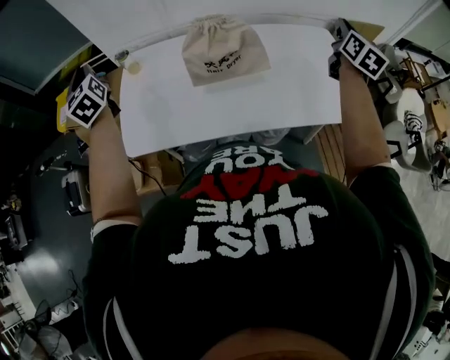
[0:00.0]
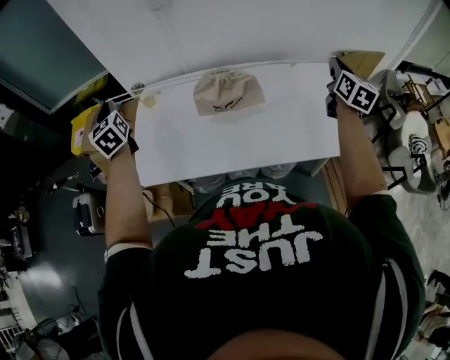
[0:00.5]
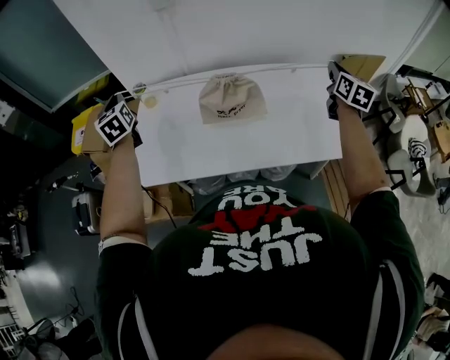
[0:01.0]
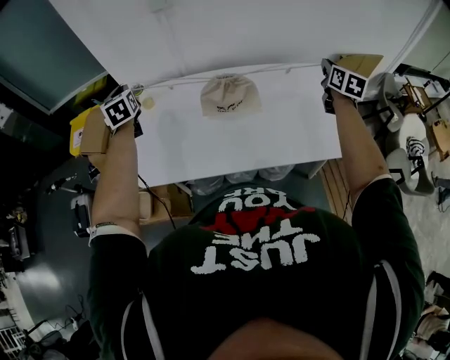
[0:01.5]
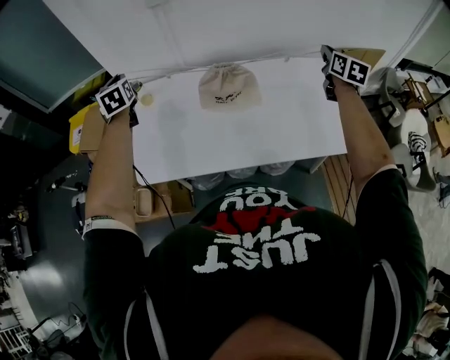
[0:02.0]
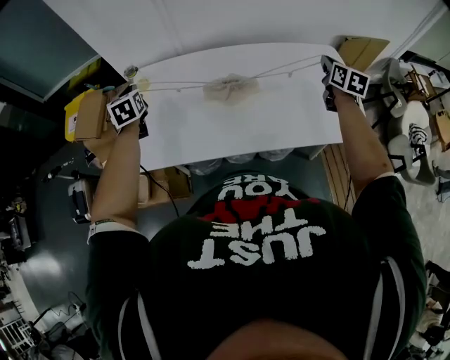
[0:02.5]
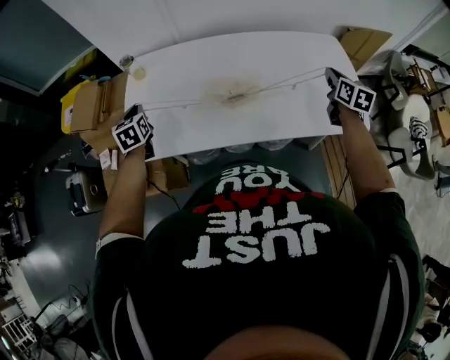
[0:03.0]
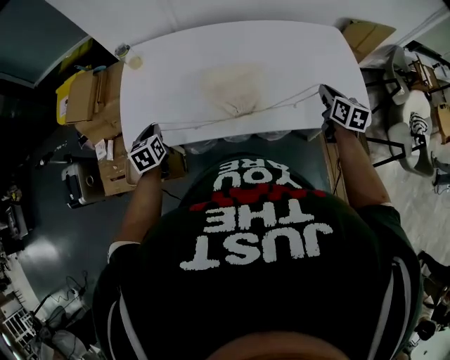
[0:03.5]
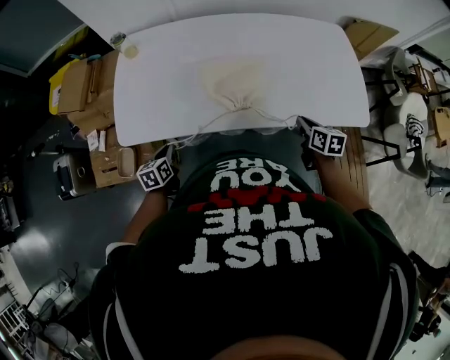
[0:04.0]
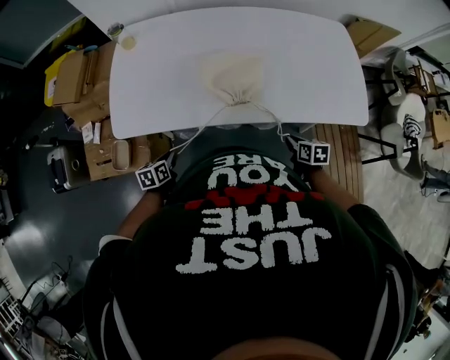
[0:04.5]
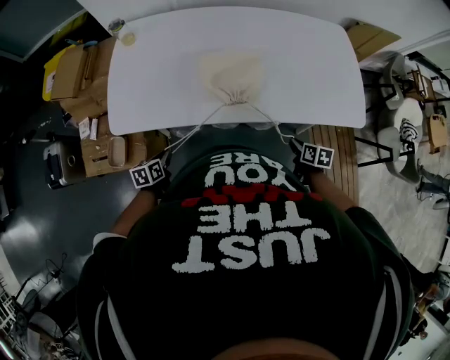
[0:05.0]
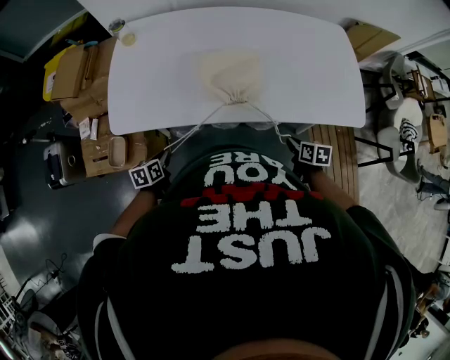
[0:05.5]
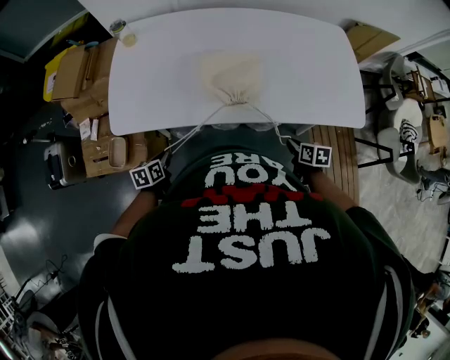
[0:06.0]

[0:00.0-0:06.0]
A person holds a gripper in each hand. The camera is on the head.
0.0 to 2.0 s: The left gripper shifts approximately 10 cm forward and to the right, and rotates some 20 degrees. The right gripper is displaced forward by roughly 5 cm.
2.0 to 4.0 s: Both grippers travel together downward and backward, some 40 cm. The right gripper rotates some 30 degrees; the left gripper changes its angle by roughly 40 degrees.
4.0 to 6.0 s: The left gripper travels backward by roughly 5 cm. Meanwhile the right gripper heads downward and backward, covering some 10 cm.

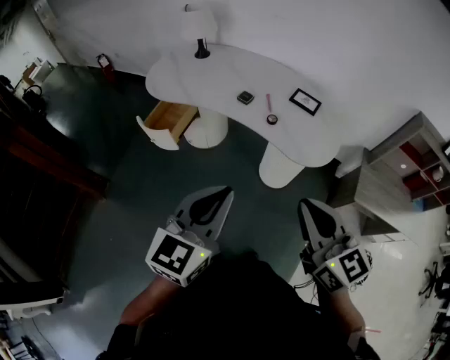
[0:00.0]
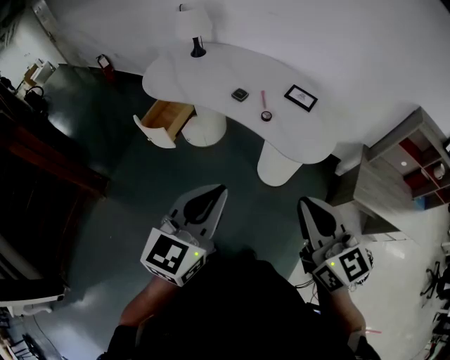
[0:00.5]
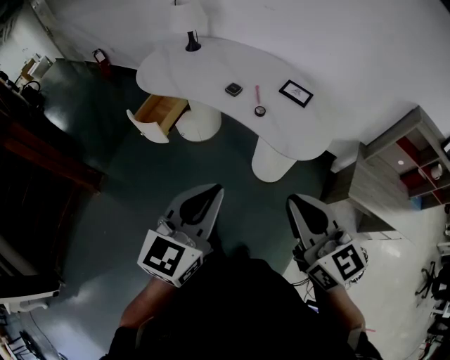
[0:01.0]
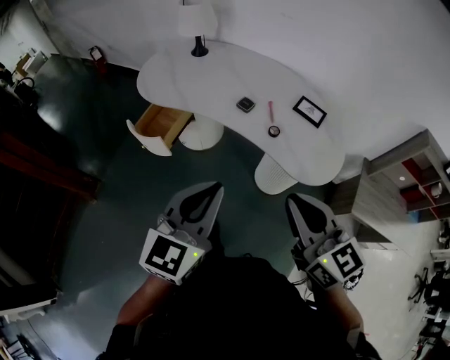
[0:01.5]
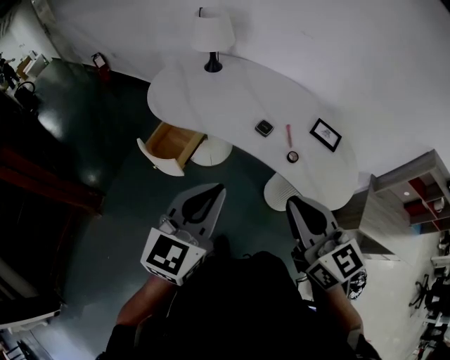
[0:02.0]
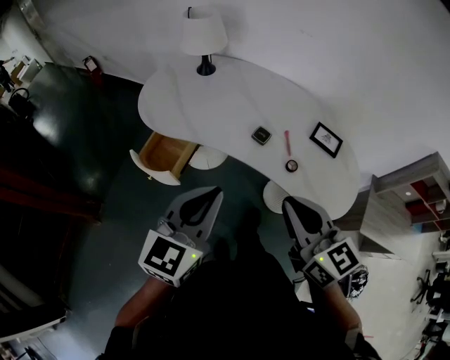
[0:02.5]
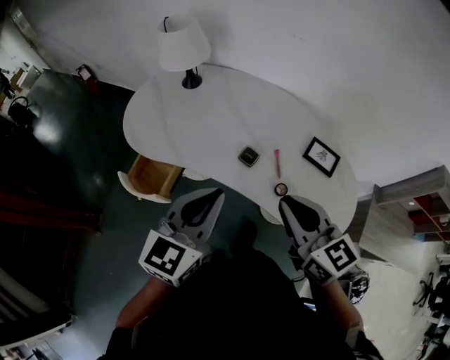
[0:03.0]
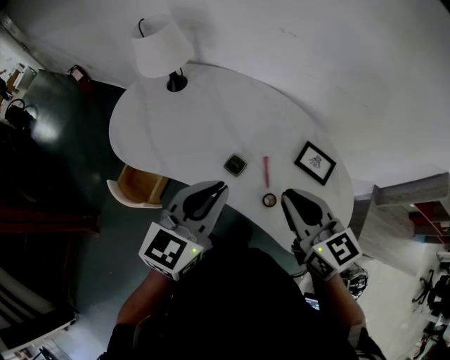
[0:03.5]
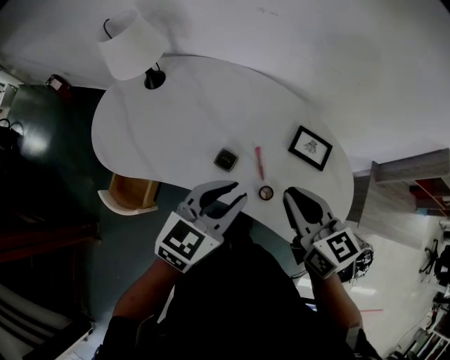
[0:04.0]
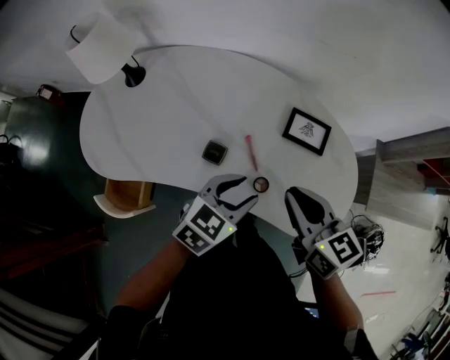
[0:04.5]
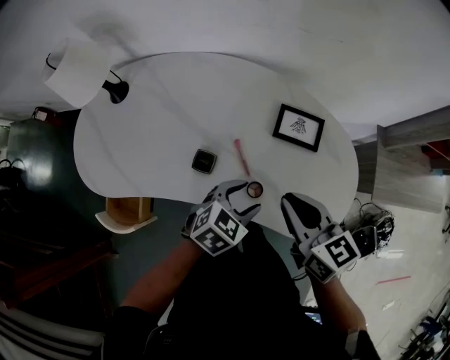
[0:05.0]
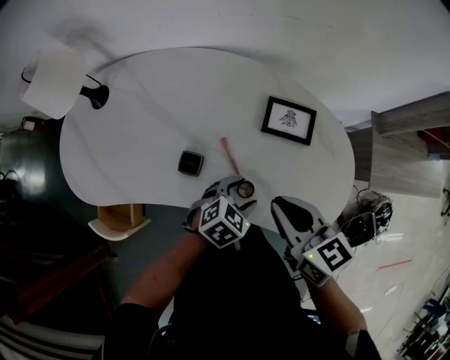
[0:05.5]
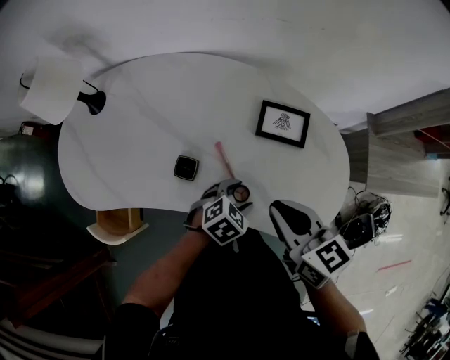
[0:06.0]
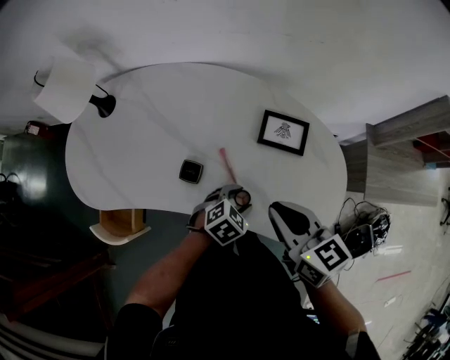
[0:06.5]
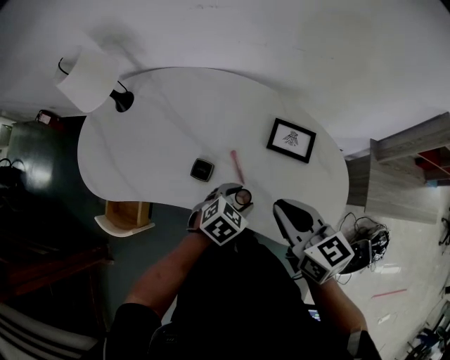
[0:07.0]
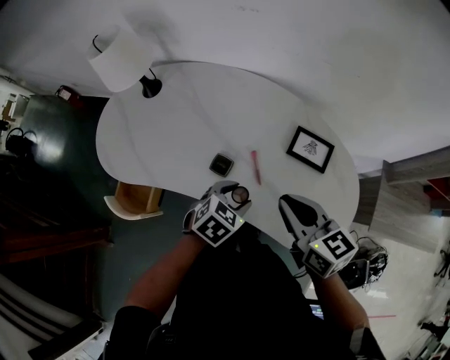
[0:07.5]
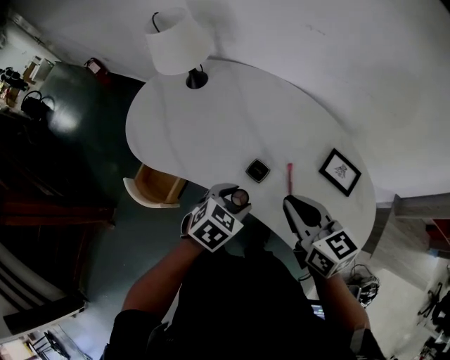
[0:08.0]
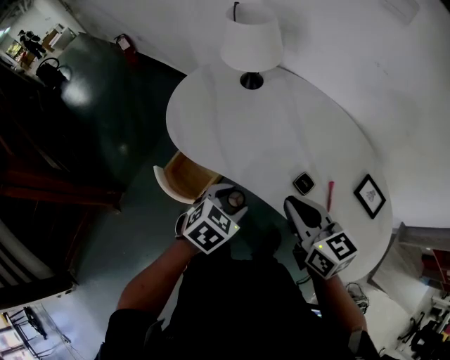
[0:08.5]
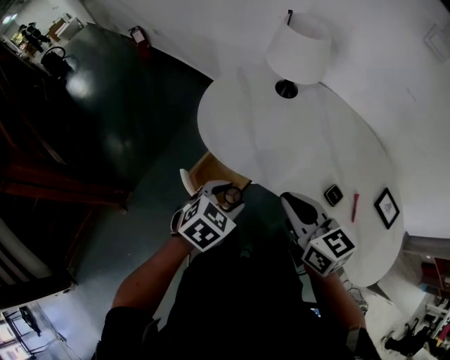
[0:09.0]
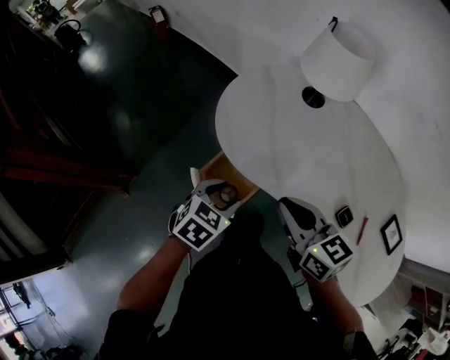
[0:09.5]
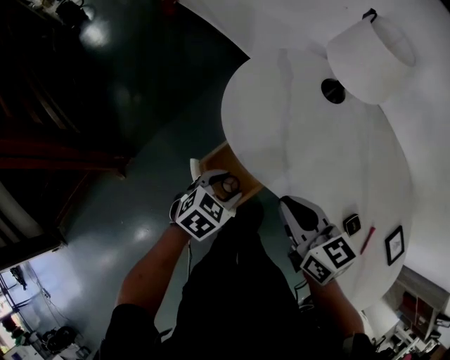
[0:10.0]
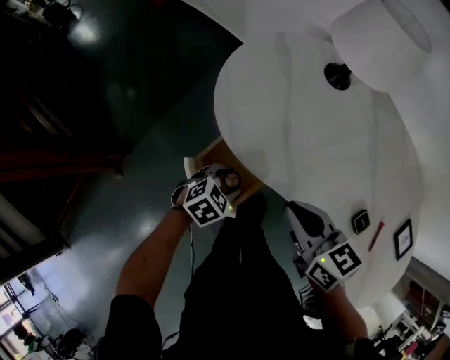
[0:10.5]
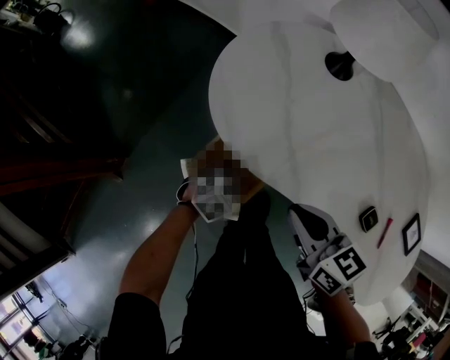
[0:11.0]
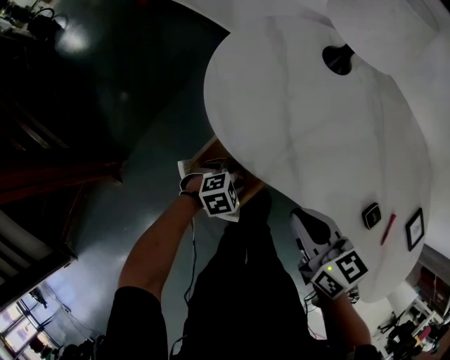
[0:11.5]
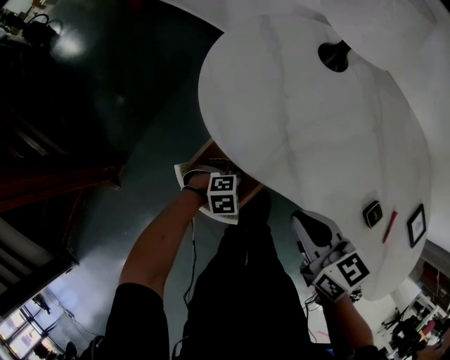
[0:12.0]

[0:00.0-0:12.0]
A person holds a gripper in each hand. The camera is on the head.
0.0 to 2.0 s: The grippers both shift forward and to the left by roughly 25 cm.
2.0 to 4.0 s: Both grippers travel together forward and to the right, some 30 cm. The left gripper turns by some 30 degrees.
4.0 to 6.0 s: The left gripper moves downward and to the right, approximately 30 cm, angles its fingers downward, by roughly 40 degrees, and opens its fingers. Meanwhile the right gripper heads downward and to the right, covering some 10 cm.
6.0 to 8.0 s: The right gripper shifts by approximately 15 cm, and rotates some 20 degrees, while the left gripper changes place by approximately 20 cm, and turns by about 30 degrees.
8.0 to 10.0 s: Both grippers move to the left, some 40 cm. The left gripper turns by some 20 degrees. The right gripper rotates some 20 degrees.
10.0 to 12.0 s: The left gripper goes approximately 20 cm downward, and rolls clockwise, seen from behind, by roughly 40 degrees. The right gripper goes approximately 5 cm downward.

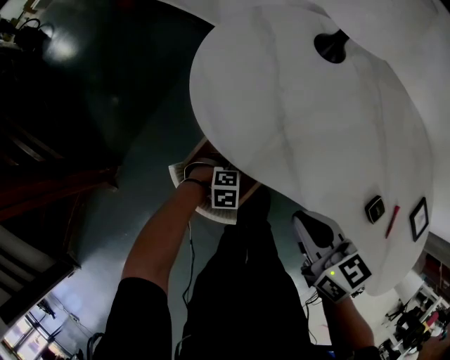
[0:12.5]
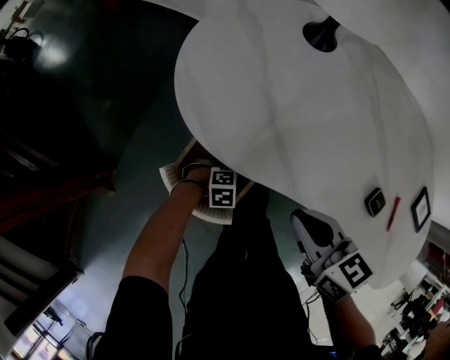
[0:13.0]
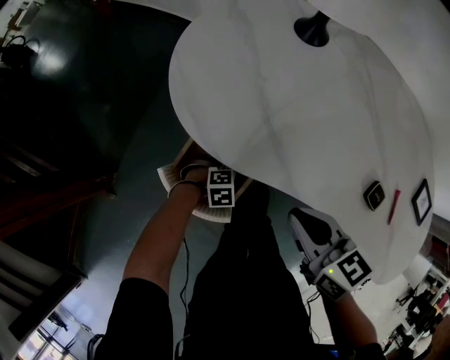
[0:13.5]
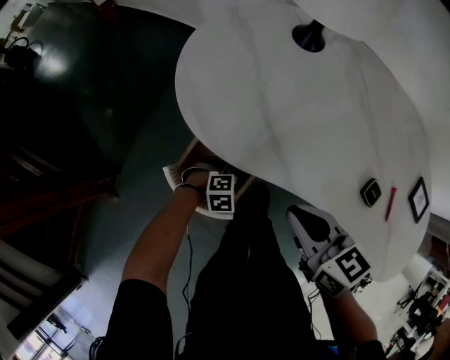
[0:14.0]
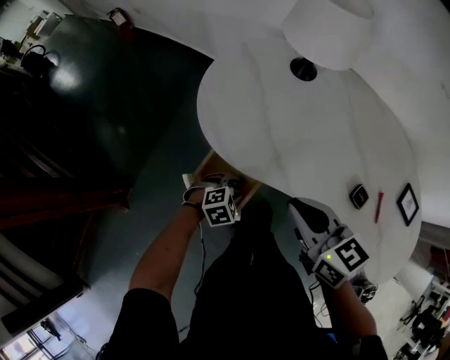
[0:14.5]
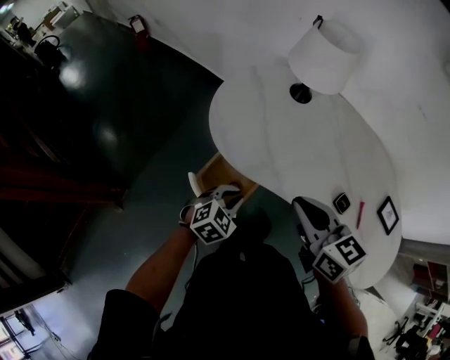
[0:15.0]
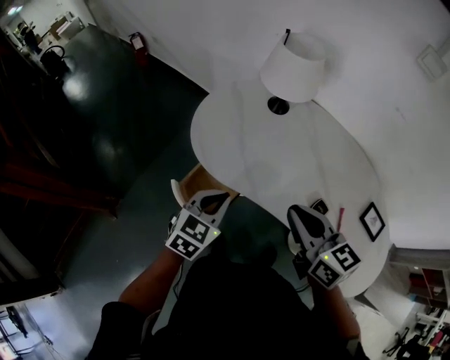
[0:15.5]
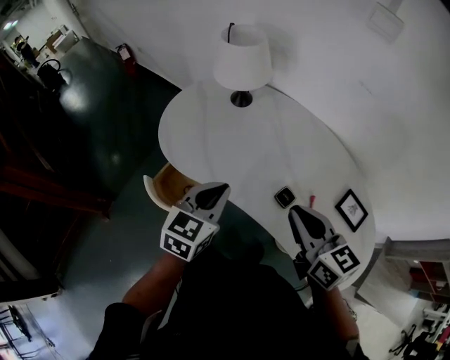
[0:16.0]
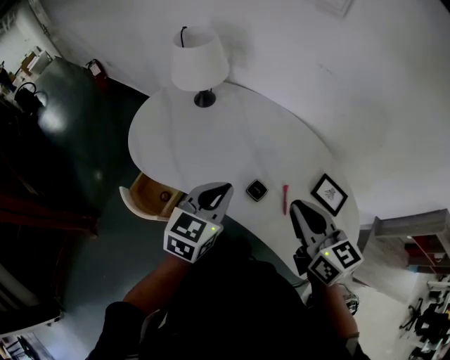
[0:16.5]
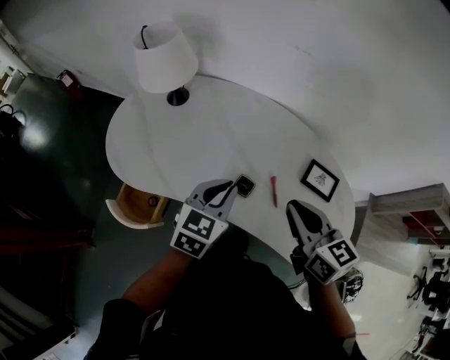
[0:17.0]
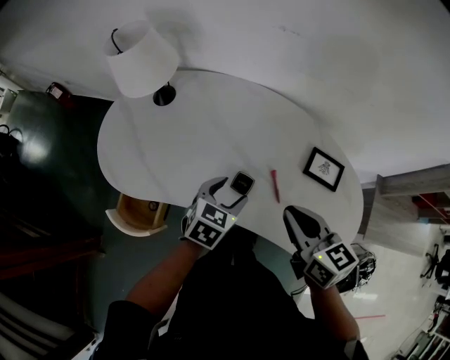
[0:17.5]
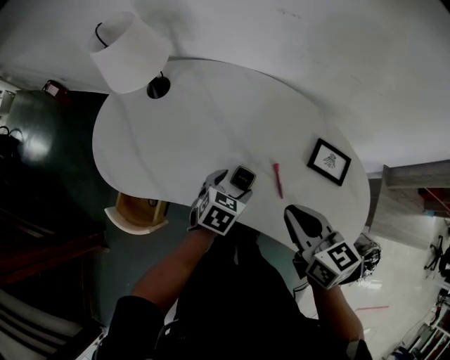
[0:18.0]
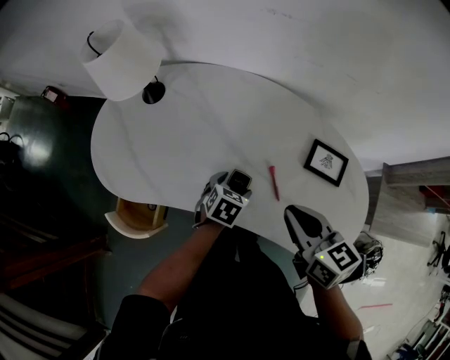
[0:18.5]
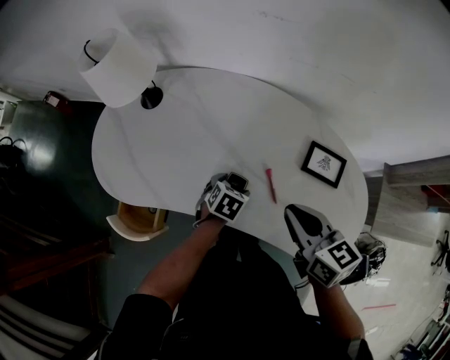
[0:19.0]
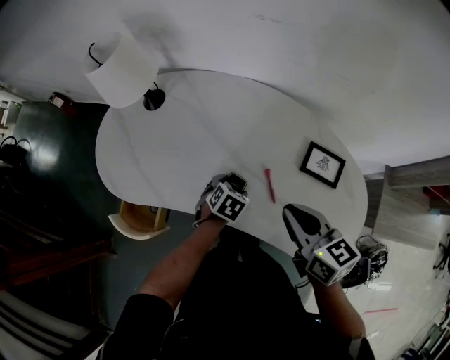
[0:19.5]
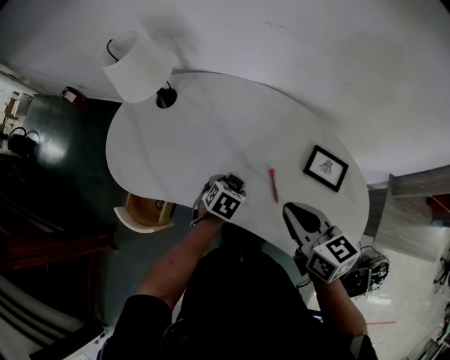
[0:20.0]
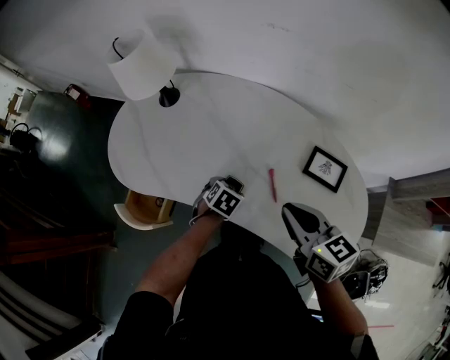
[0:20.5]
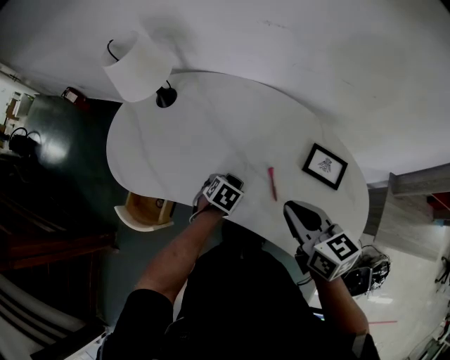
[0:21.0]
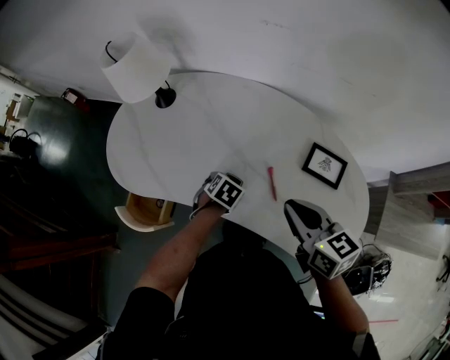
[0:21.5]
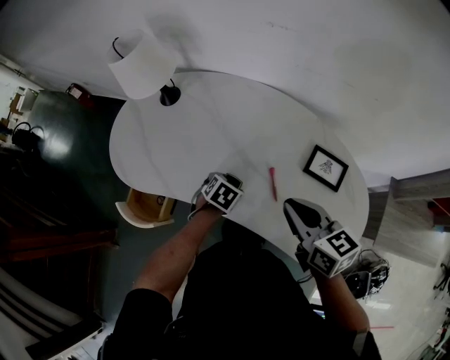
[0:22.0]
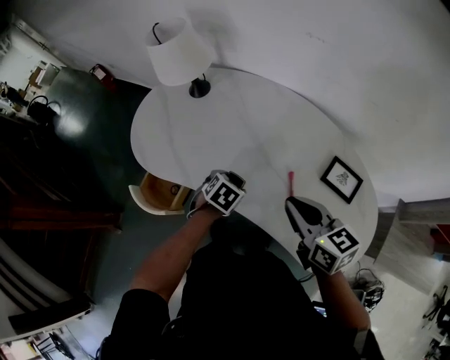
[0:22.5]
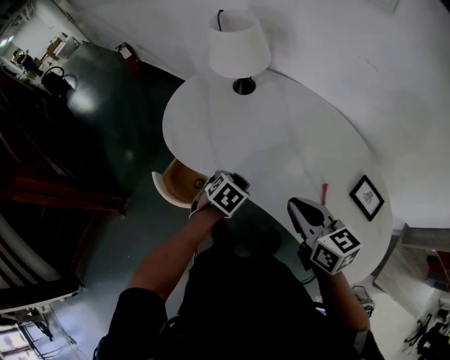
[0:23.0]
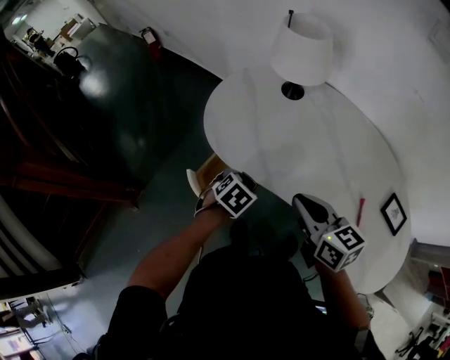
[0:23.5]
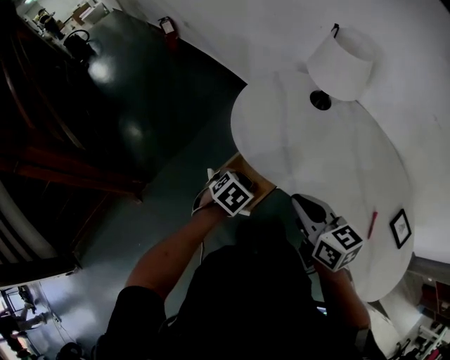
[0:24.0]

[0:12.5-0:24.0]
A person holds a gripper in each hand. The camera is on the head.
12.5 to 14.5 s: The two grippers go some 10 cm upward.
14.5 to 16.5 s: The right gripper goes approximately 35 cm to the right. The left gripper travels upward and to the right by roughly 50 cm, tilts its fingers some 40 degrees upward, and closes.
16.5 to 18.5 s: The right gripper travels downward and to the right by about 10 cm. Meanwhile the left gripper heads downward, covering some 25 cm, points its fingers roughly 40 degrees further downward, and opens.
18.5 to 22.0 s: The grippers move only a little.
22.0 to 24.0 s: Both grippers are carried to the left, roughly 40 cm. The right gripper swivels some 30 degrees.
